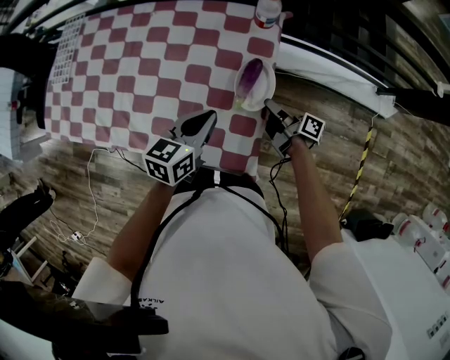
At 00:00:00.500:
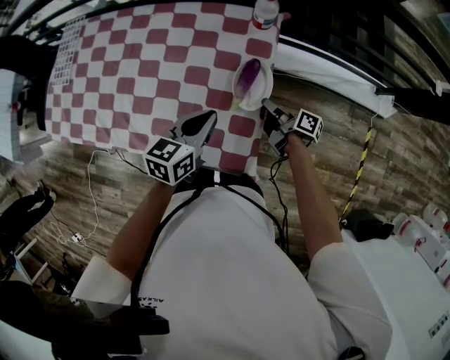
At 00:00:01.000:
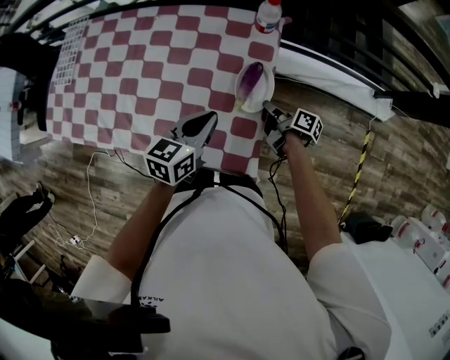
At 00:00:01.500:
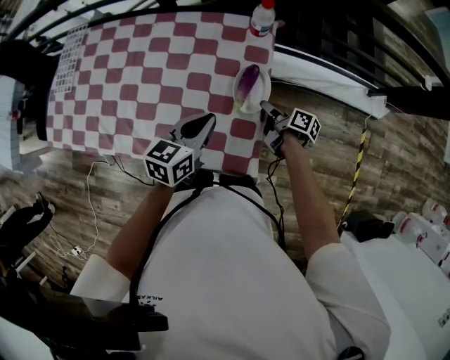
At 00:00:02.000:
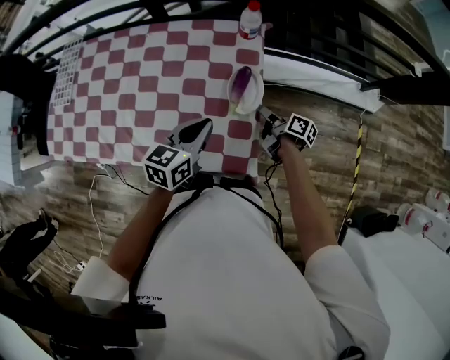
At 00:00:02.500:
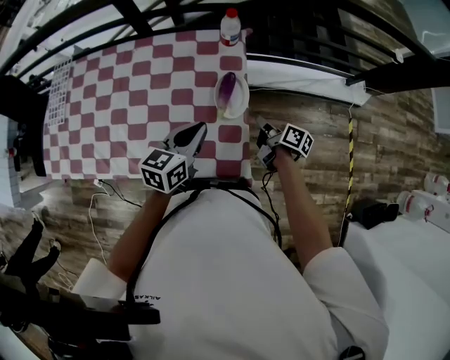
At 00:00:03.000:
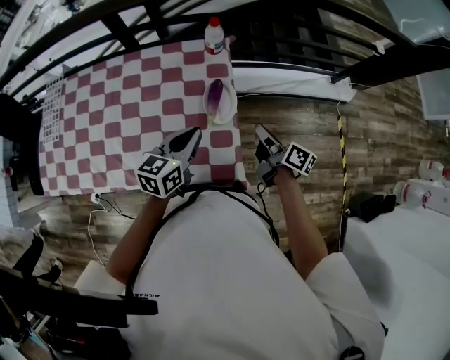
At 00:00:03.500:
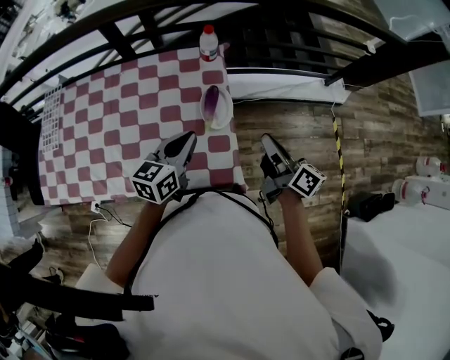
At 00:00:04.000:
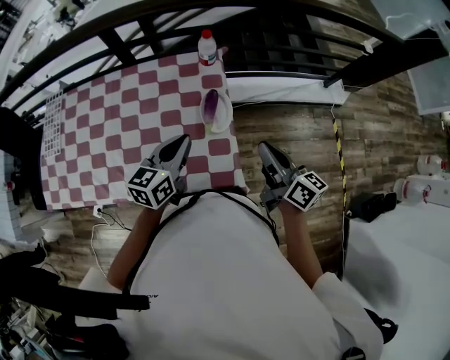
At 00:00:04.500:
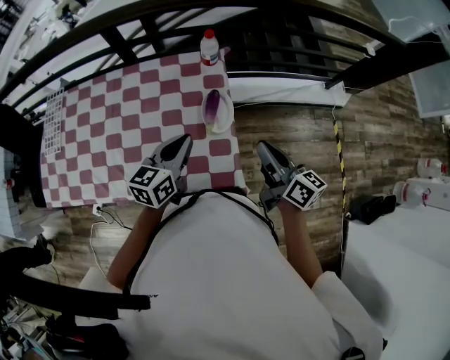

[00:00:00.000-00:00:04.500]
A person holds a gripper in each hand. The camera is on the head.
00:00:02.000 to 00:00:04.500: The left gripper shifts approximately 5 cm upward.

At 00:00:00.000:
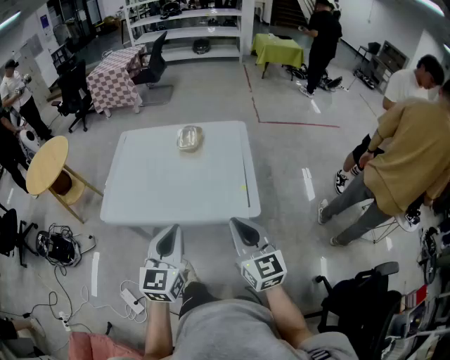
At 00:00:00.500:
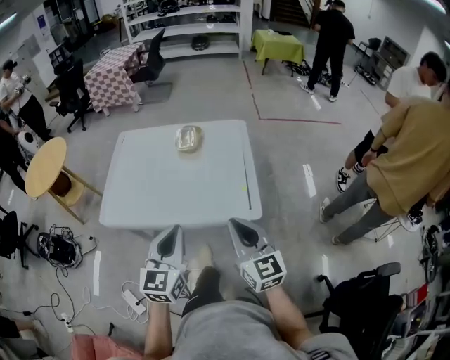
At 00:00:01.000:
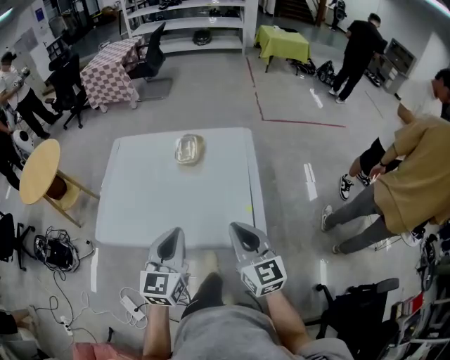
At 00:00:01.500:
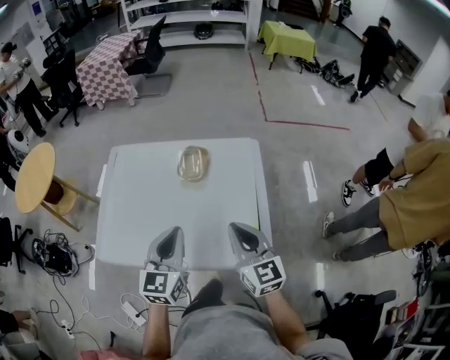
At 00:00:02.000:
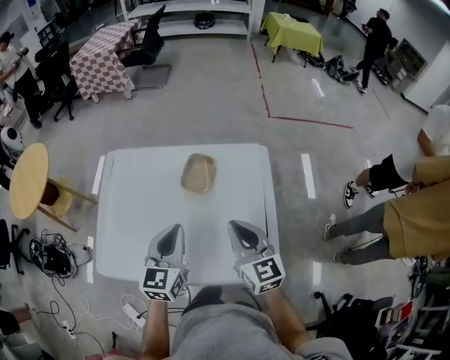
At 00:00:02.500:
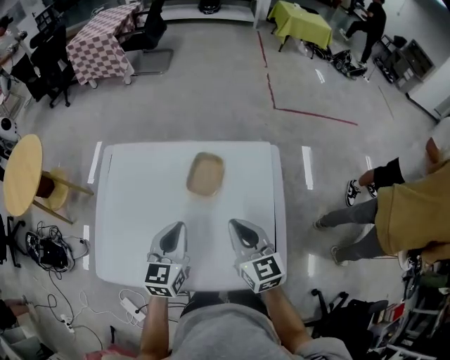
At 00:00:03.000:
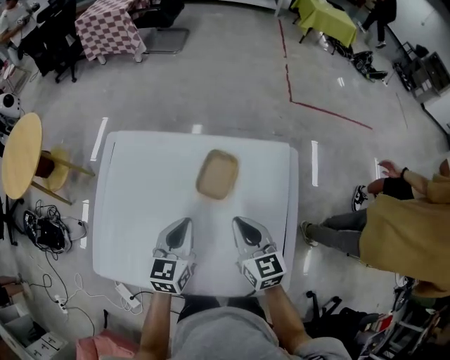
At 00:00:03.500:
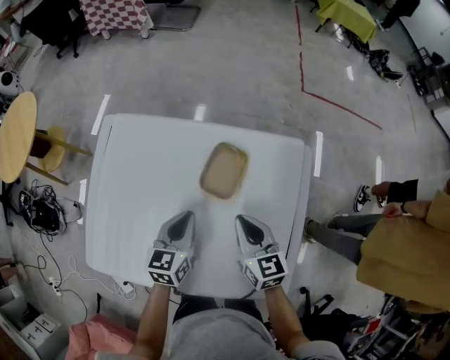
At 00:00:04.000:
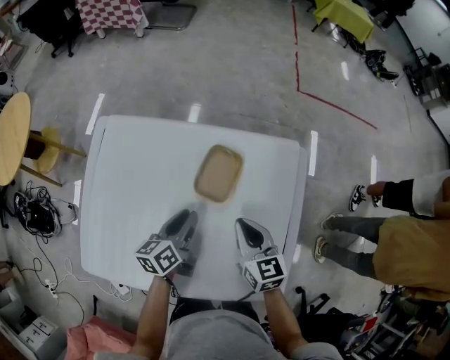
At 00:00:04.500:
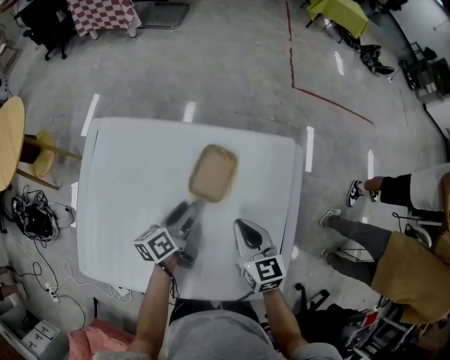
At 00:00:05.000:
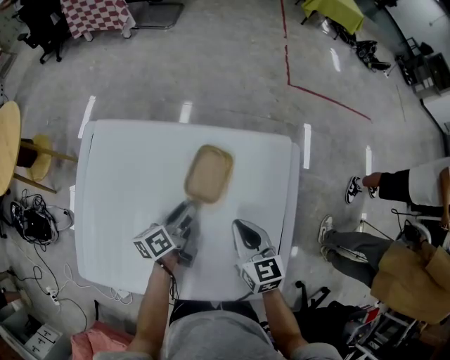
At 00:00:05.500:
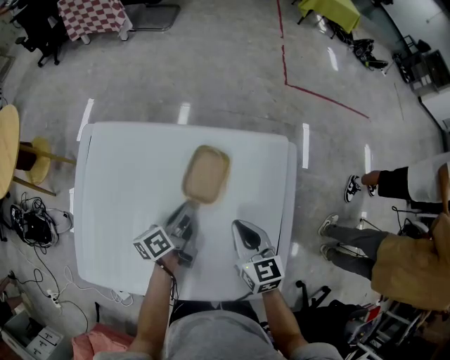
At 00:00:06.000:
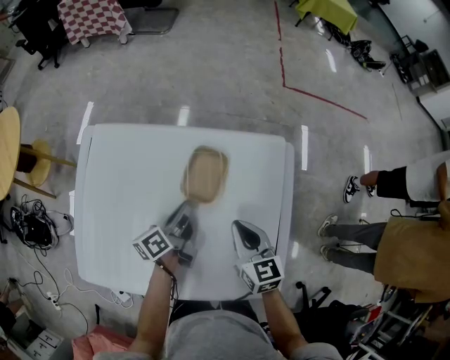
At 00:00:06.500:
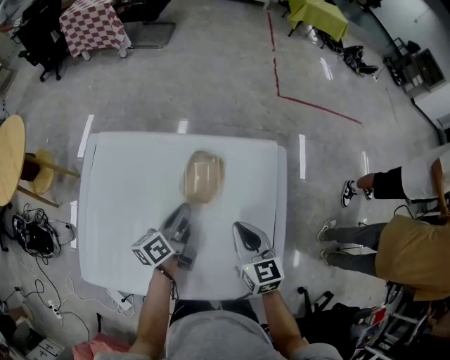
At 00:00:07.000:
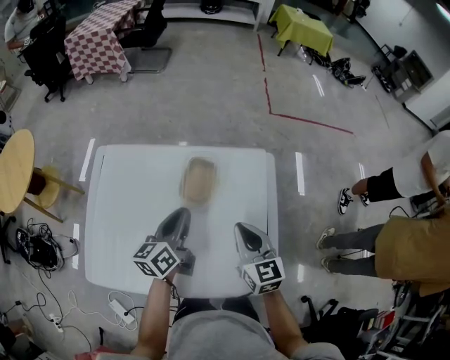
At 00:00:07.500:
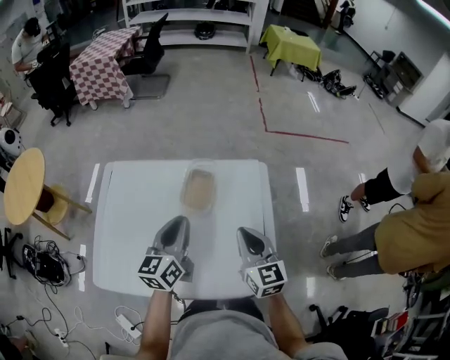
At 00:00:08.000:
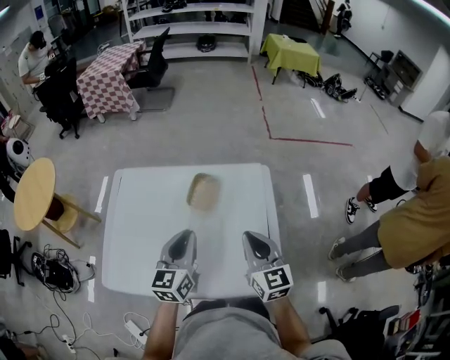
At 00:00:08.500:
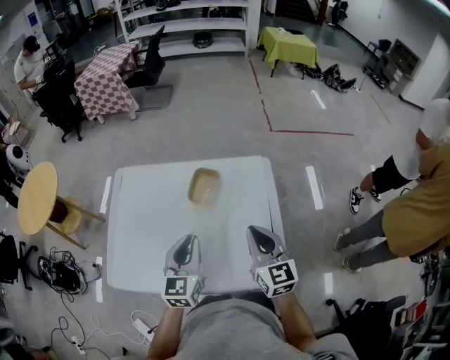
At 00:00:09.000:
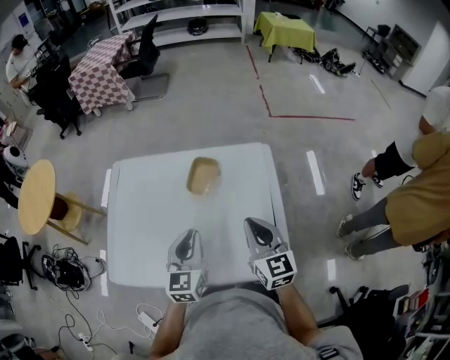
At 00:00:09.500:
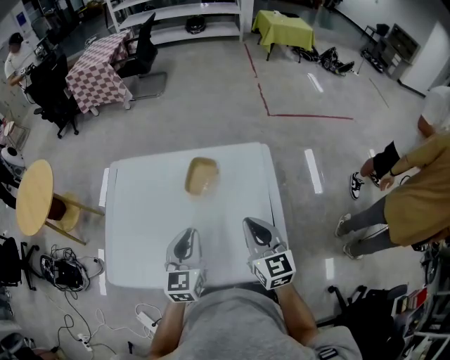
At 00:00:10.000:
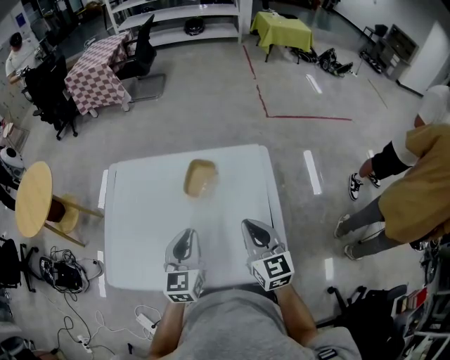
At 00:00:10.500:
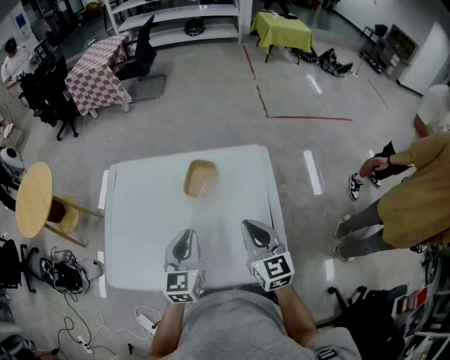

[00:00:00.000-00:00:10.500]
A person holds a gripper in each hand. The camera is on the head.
00:00:00.000 to 00:00:02.000: The grippers both shift forward by approximately 35 cm.
00:00:02.000 to 00:00:04.000: The grippers both shift downward and forward by roughly 25 cm. The left gripper rotates around the line of its fingers by roughly 40 degrees, counterclockwise from behind, and opens its fingers.
00:00:04.000 to 00:00:06.500: The left gripper opens, then closes again.
00:00:06.500 to 00:00:08.500: The right gripper travels upward and backward by some 20 cm, while the left gripper shifts about 25 cm backward and upward, and rotates around the line of its fingers by some 50 degrees, clockwise from behind.
00:00:08.500 to 00:00:10.500: The grippers move only a little.

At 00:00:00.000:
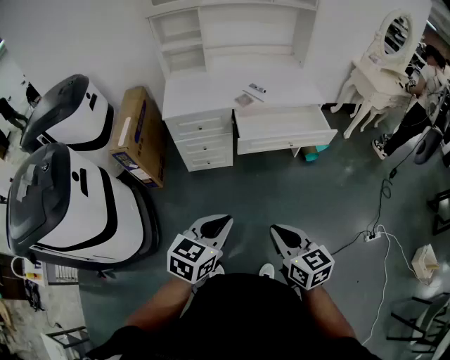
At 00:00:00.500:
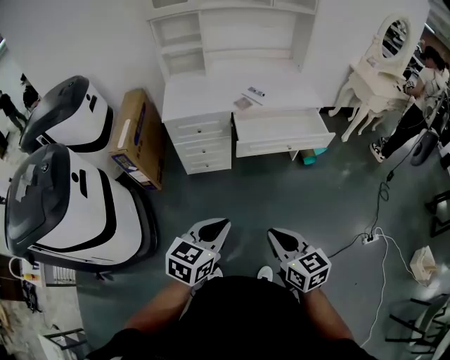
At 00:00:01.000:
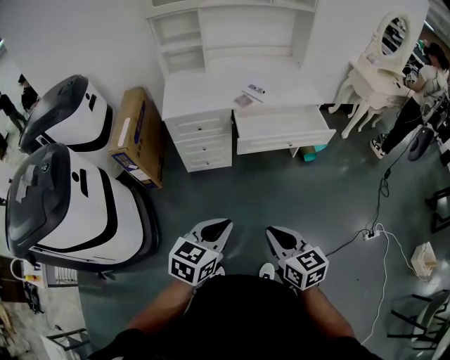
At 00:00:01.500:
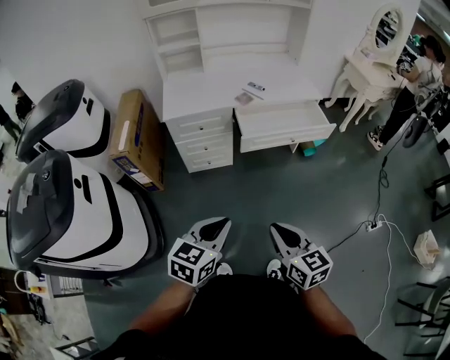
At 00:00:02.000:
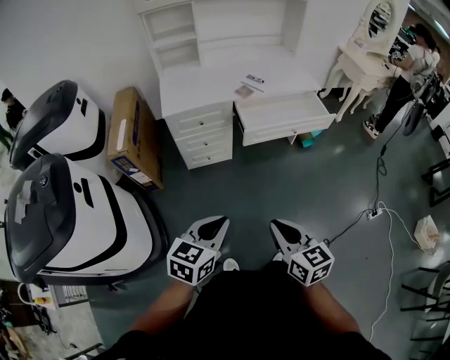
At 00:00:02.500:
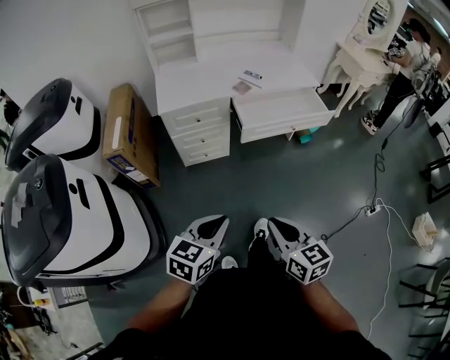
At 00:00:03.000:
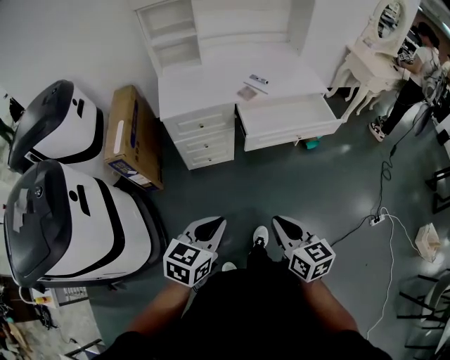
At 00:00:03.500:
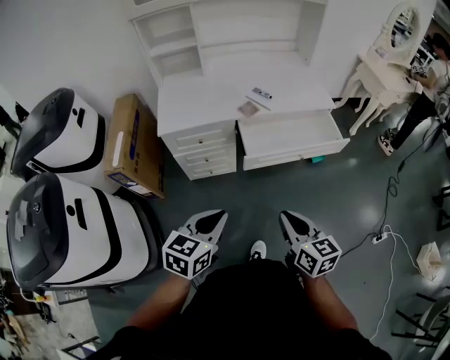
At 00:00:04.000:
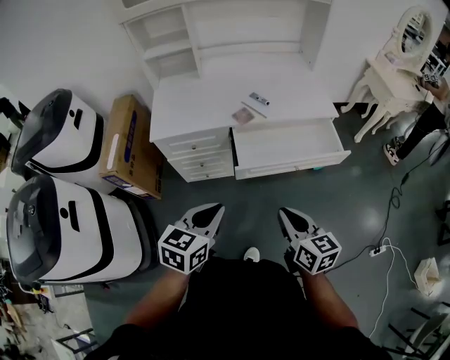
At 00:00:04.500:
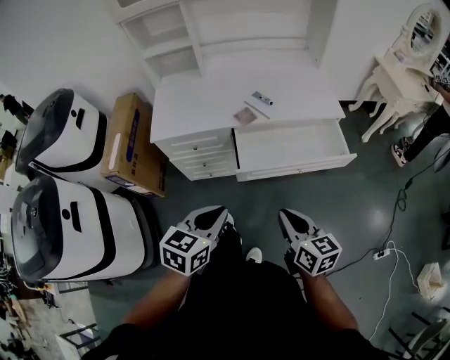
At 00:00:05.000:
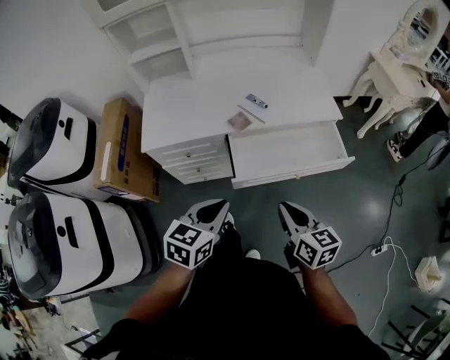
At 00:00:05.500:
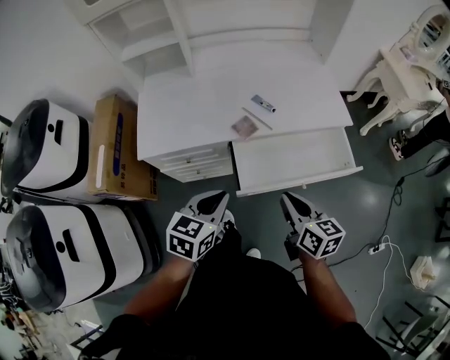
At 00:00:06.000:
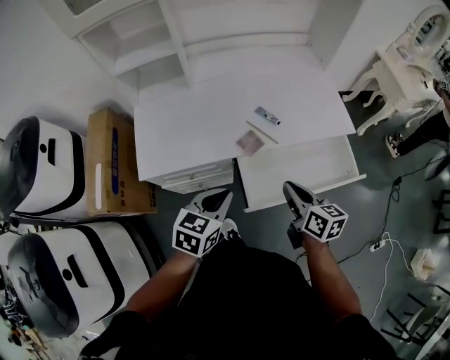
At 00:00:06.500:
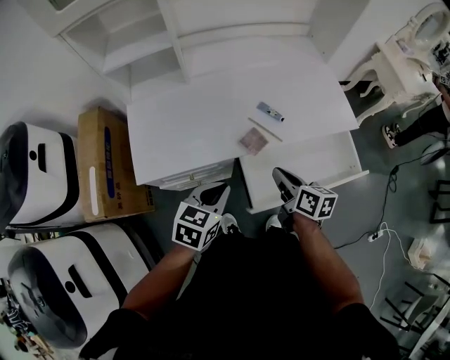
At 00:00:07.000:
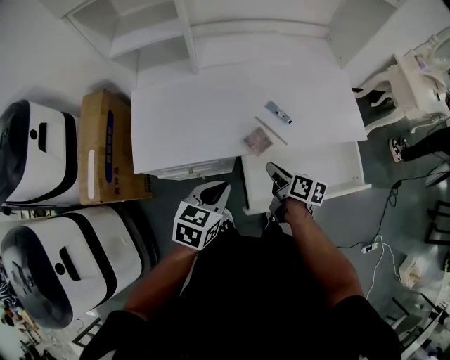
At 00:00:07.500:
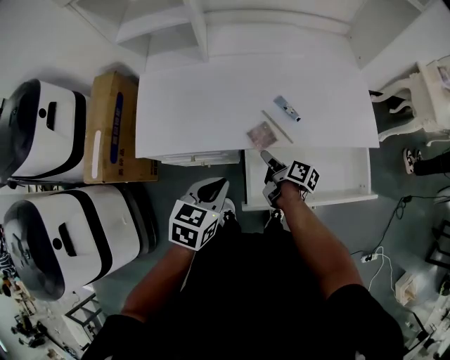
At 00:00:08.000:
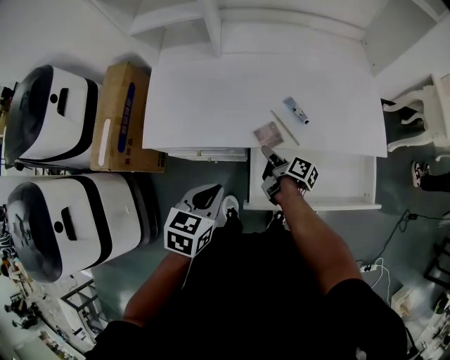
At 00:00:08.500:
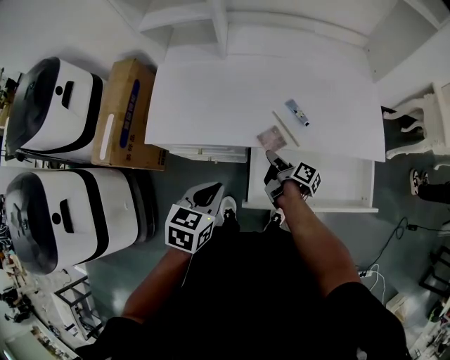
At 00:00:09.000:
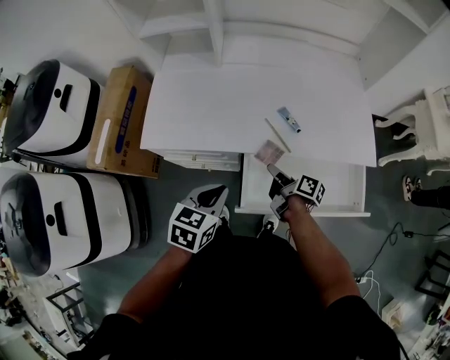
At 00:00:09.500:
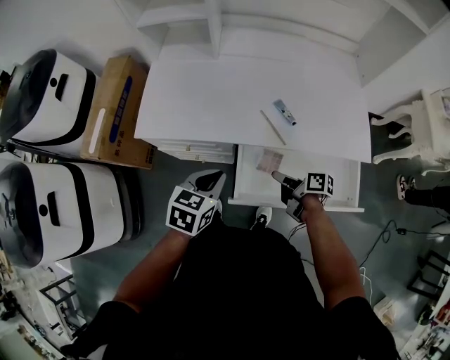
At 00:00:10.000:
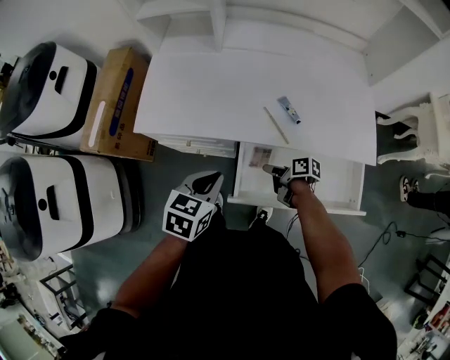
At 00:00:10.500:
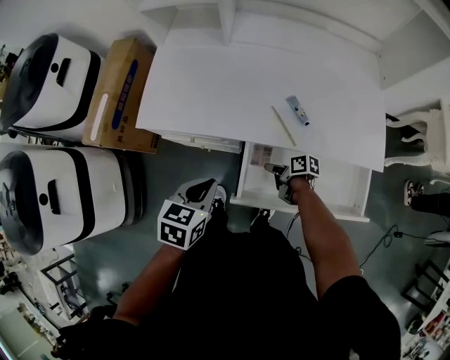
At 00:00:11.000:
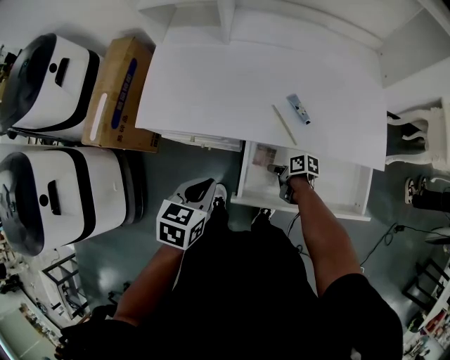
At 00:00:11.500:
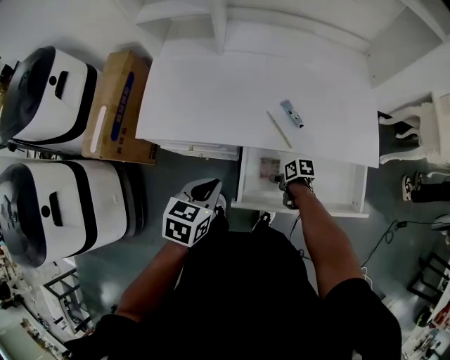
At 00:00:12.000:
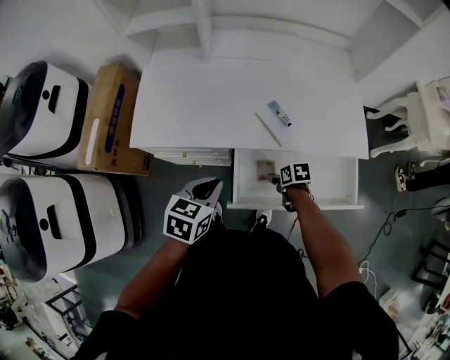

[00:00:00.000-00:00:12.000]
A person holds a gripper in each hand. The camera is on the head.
00:00:00.000 to 00:00:02.000: The grippers both shift to the left by approximately 10 cm.
00:00:02.000 to 00:00:04.000: The left gripper goes about 25 cm forward. Meanwhile the right gripper heads forward and to the right, covering some 30 cm.
00:00:04.000 to 00:00:06.000: The two grippers go some 25 cm forward.
00:00:06.000 to 00:00:08.000: The left gripper turns by about 20 degrees; the right gripper is displaced downward, forward and to the left by approximately 25 cm, and rolls clockwise, seen from behind, by about 40 degrees.
00:00:08.000 to 00:00:10.000: The right gripper moves backward, some 5 cm, and swivels about 40 degrees.
00:00:10.000 to 00:00:12.000: The right gripper moves about 5 cm, rotates approximately 40 degrees, and opens.
